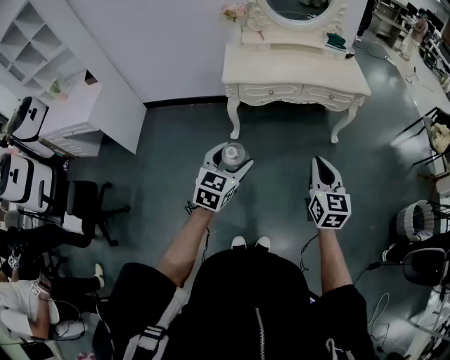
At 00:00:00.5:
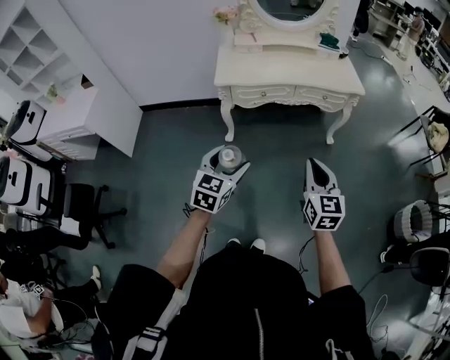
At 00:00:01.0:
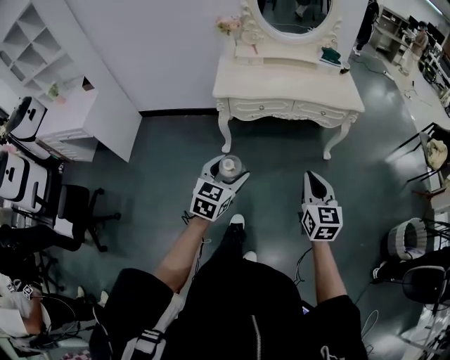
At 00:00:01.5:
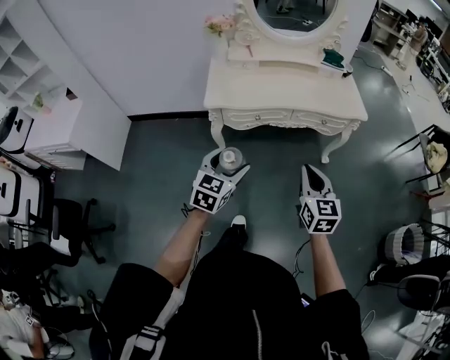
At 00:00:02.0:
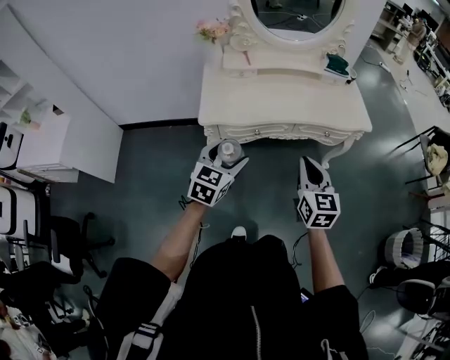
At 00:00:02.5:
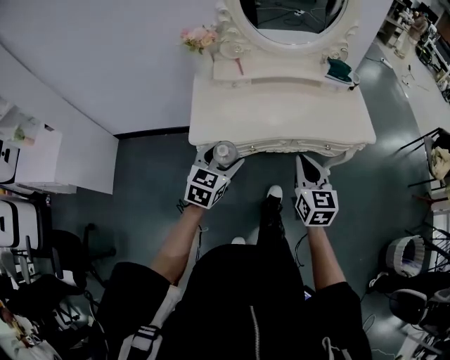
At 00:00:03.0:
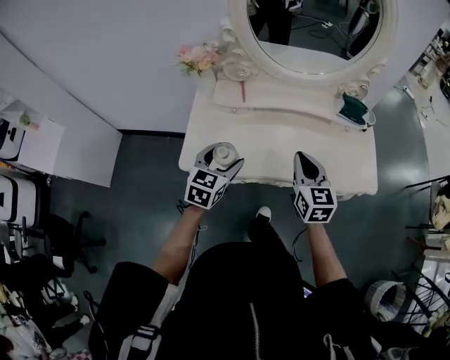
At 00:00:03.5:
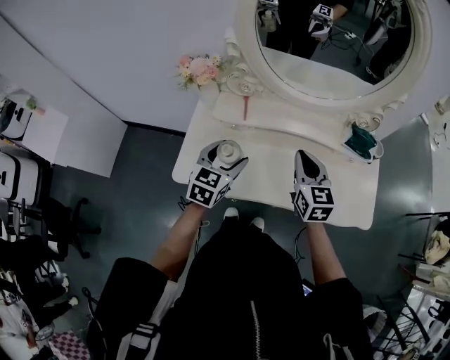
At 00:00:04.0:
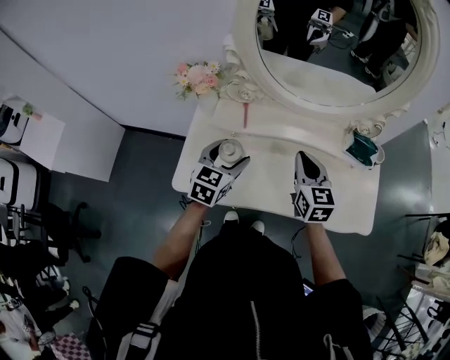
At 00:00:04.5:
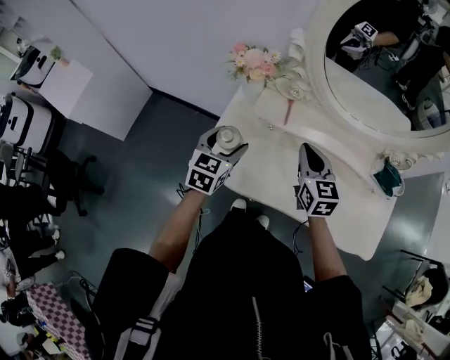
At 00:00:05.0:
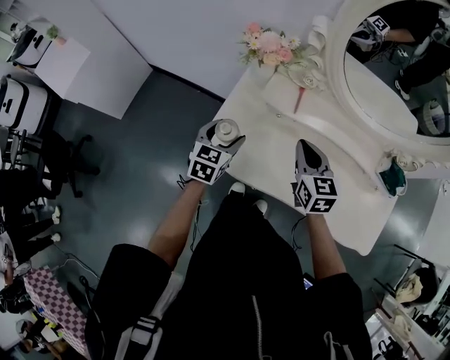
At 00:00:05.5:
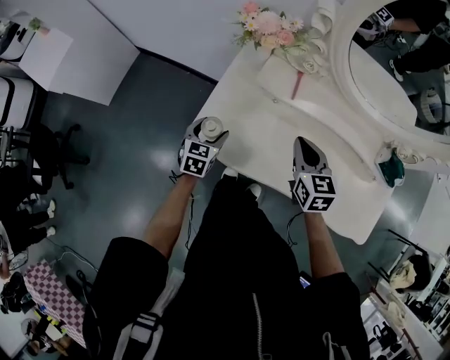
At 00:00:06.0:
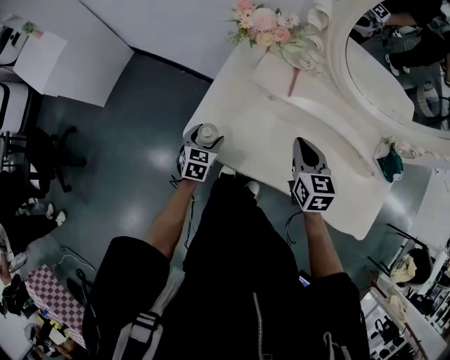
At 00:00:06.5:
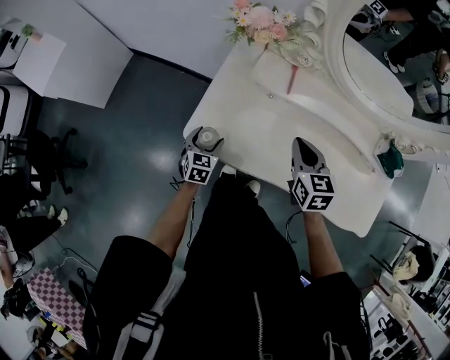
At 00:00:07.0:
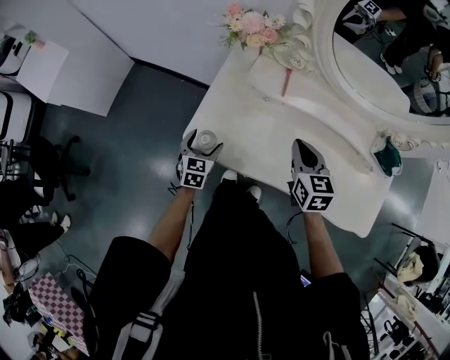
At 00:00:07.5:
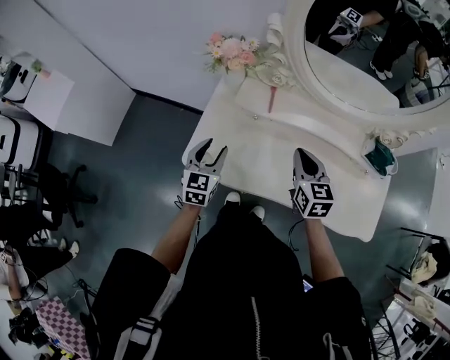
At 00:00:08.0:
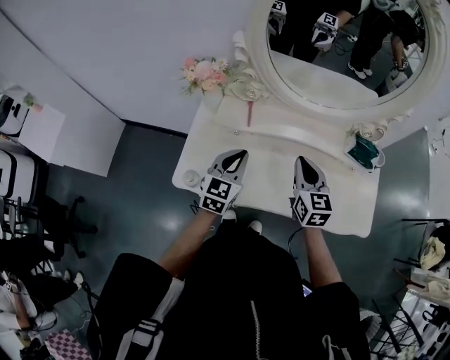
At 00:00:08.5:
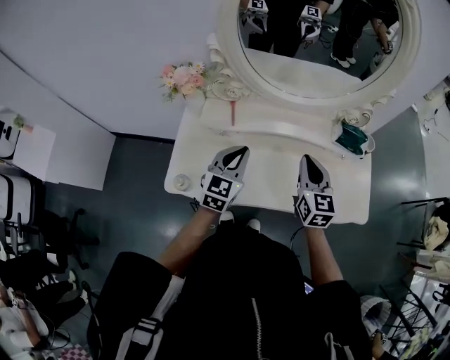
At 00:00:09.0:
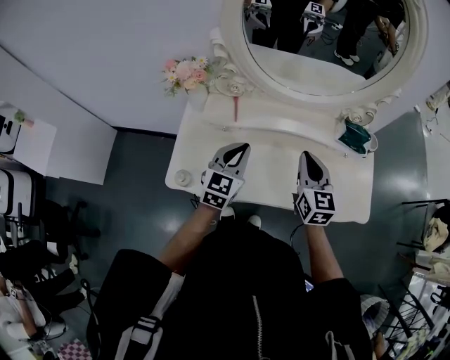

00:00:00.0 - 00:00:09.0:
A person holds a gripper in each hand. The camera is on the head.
00:00:00.0 - 00:00:02.0: Both grippers travel together forward, about 35 cm.
00:00:02.0 - 00:00:04.5: The left gripper moves about 40 cm, and changes its angle by roughly 30 degrees, while the right gripper ends up approximately 50 cm from where it was, and swivels approximately 30 degrees.
00:00:04.5 - 00:00:07.0: The right gripper moves downward, some 5 cm, while the left gripper shifts about 20 cm downward.
00:00:07.0 - 00:00:09.0: The left gripper ends up about 35 cm from where it was, rotates some 30 degrees, and closes, while the right gripper shifts by some 20 cm, and changes its angle by about 30 degrees.

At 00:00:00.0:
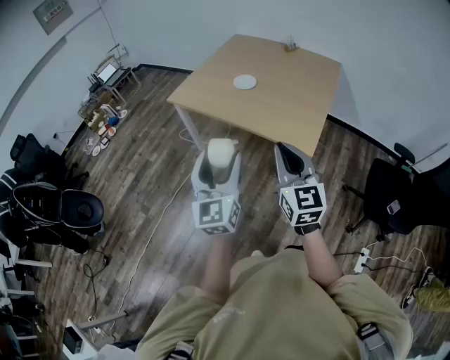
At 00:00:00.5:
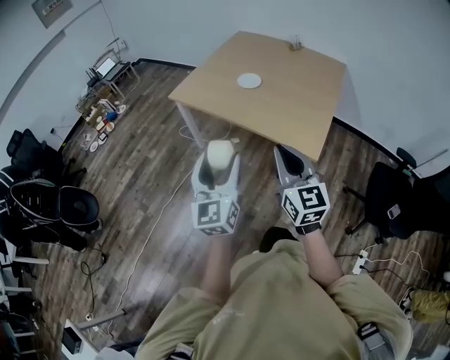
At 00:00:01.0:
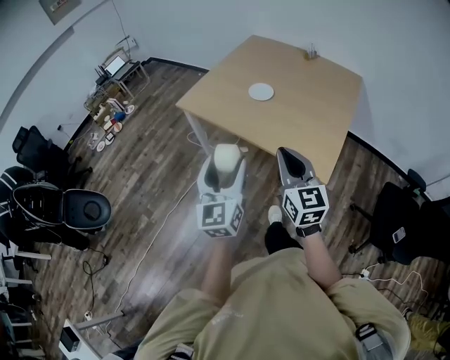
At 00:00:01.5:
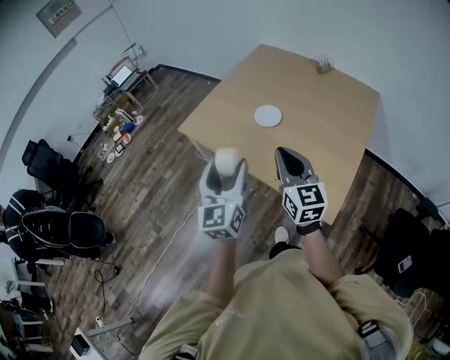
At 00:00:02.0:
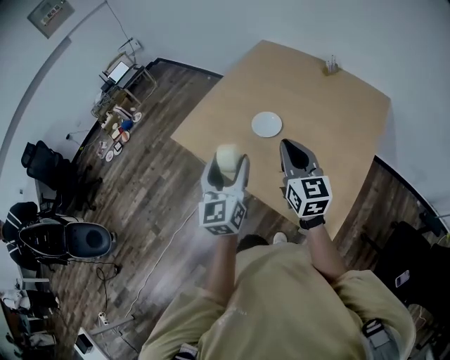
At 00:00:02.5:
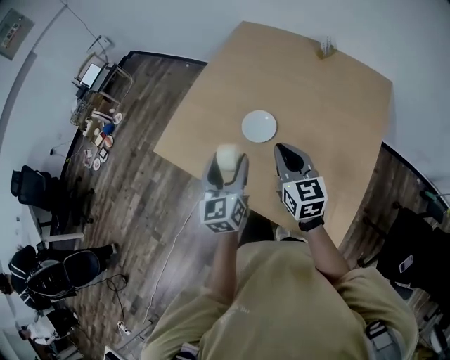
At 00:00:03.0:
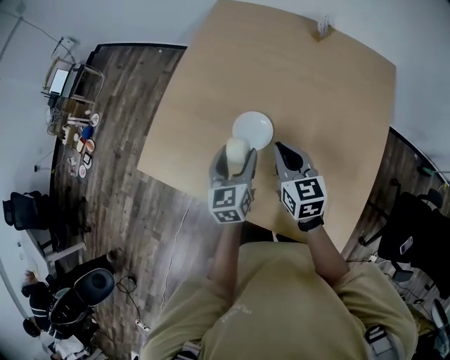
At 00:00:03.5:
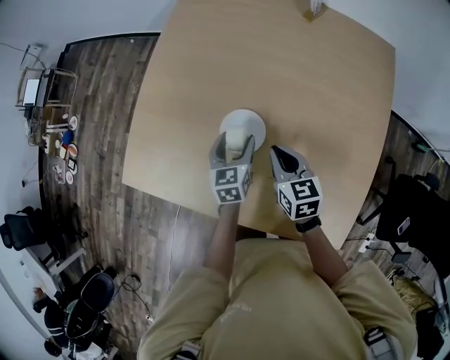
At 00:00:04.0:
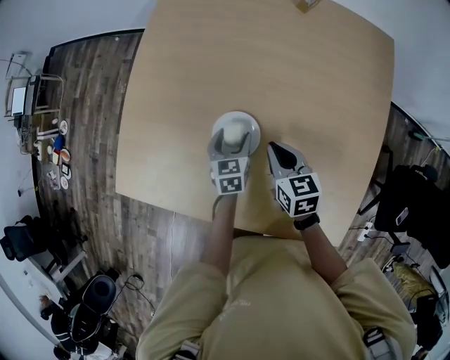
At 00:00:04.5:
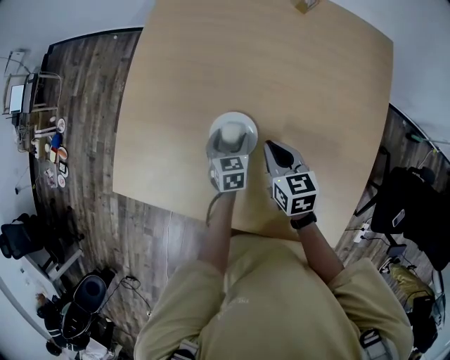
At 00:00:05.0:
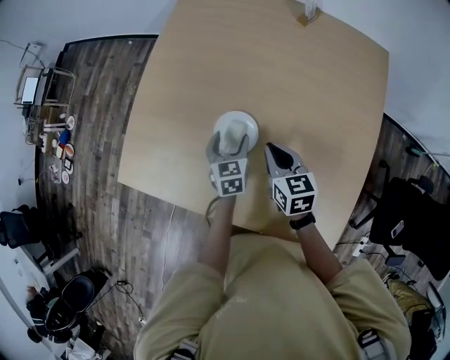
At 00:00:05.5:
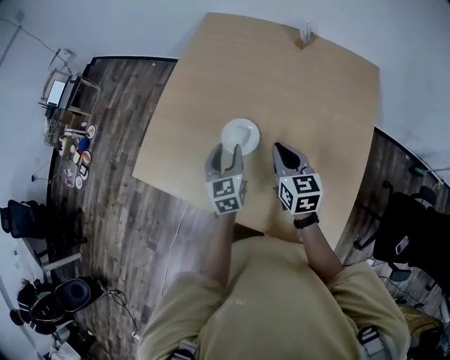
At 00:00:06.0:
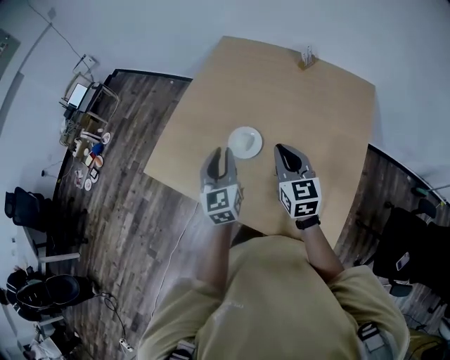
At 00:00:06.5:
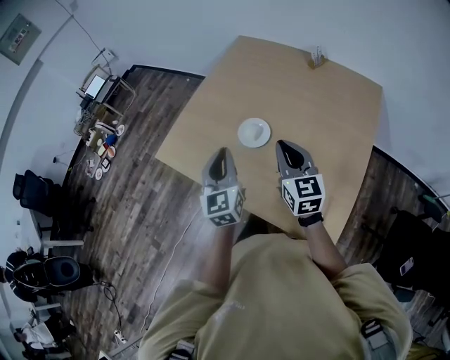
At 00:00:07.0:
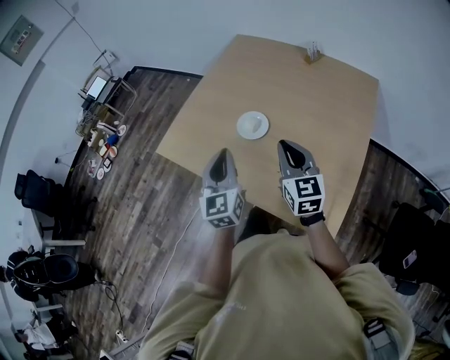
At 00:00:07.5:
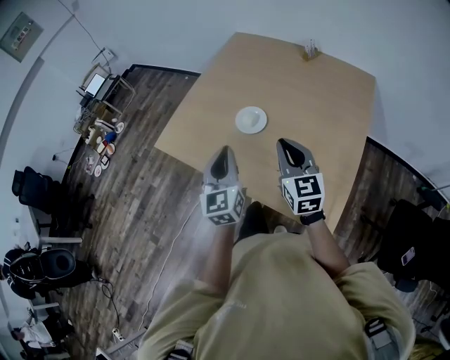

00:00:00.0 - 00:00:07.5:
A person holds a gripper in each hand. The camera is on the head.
00:00:00.0 - 00:00:02.0: Both grippers are carried forward, approximately 50 cm.
00:00:02.0 - 00:00:04.0: The grippers both shift forward and downward by approximately 50 cm. The left gripper tips its fingers downward by roughly 40 degrees. The right gripper tilts its fingers roughly 30 degrees downward.
00:00:04.0 - 00:00:05.5: Both grippers travel together upward and backward, some 20 cm. The left gripper swivels some 20 degrees, and closes up.
00:00:05.5 - 00:00:07.5: Both grippers move backward and upward, about 25 cm. The left gripper turns by about 20 degrees, and closes up. The right gripper rotates roughly 20 degrees.

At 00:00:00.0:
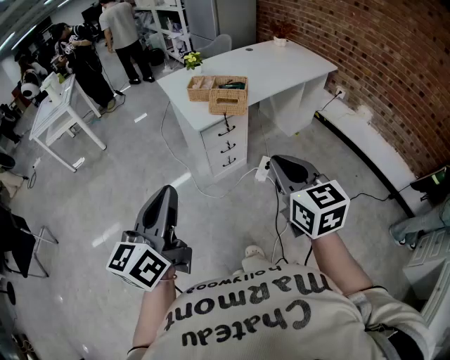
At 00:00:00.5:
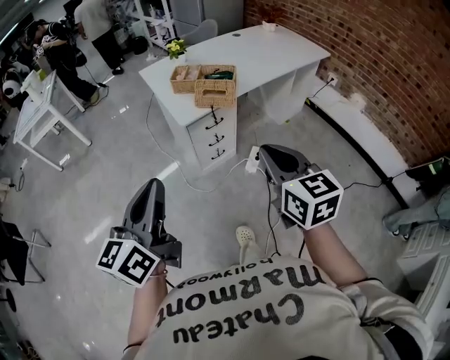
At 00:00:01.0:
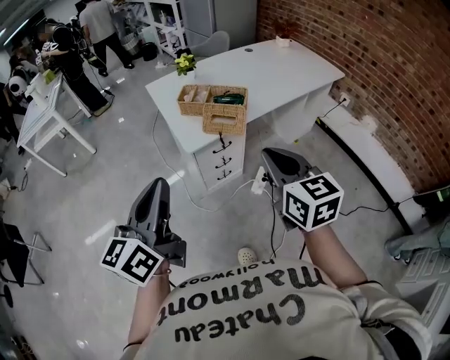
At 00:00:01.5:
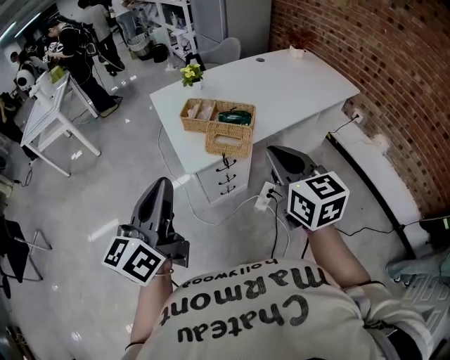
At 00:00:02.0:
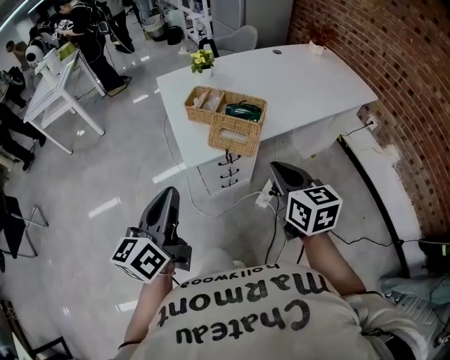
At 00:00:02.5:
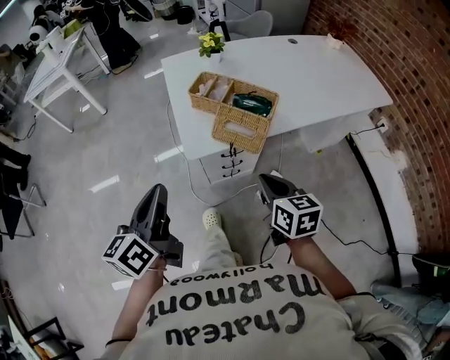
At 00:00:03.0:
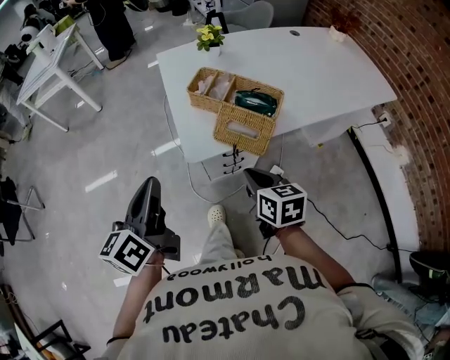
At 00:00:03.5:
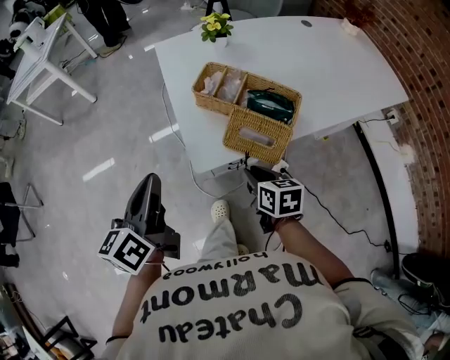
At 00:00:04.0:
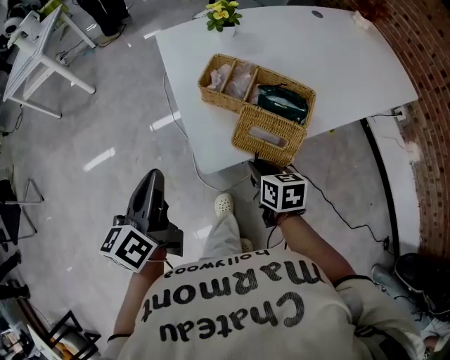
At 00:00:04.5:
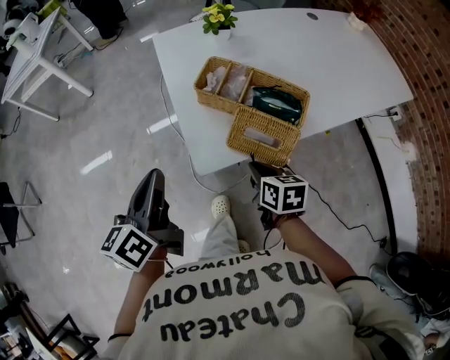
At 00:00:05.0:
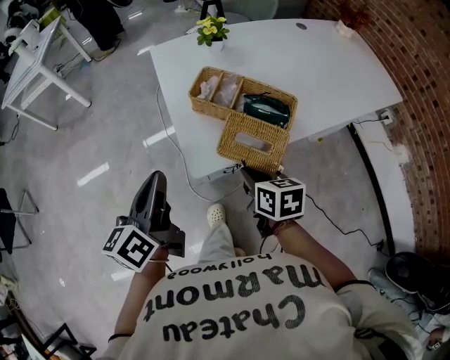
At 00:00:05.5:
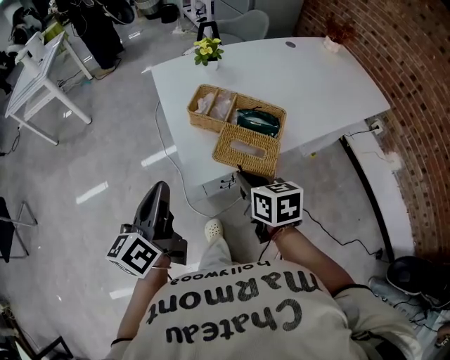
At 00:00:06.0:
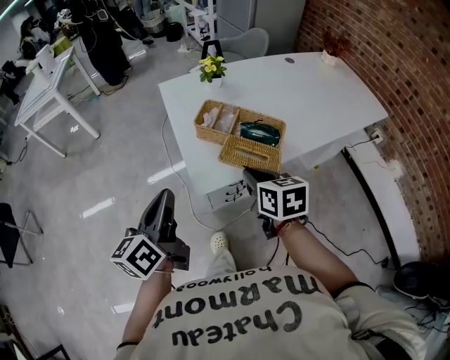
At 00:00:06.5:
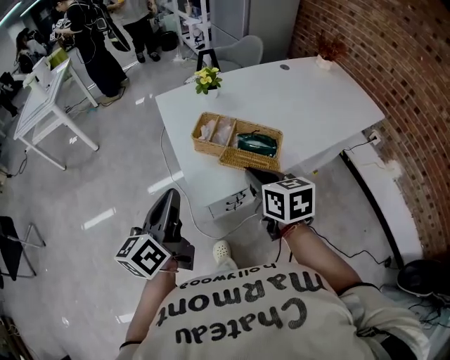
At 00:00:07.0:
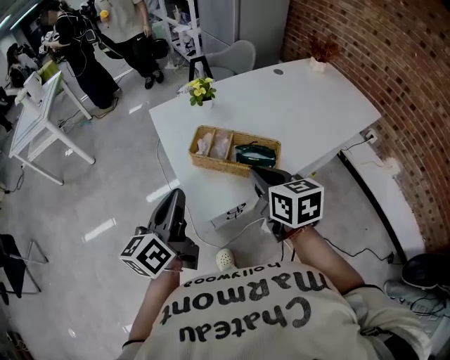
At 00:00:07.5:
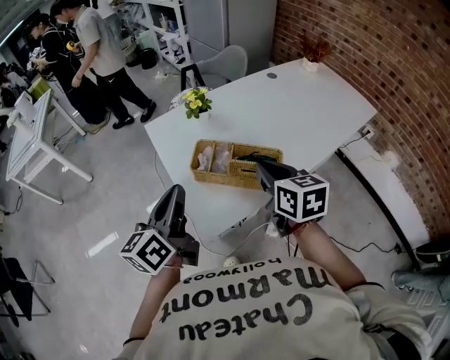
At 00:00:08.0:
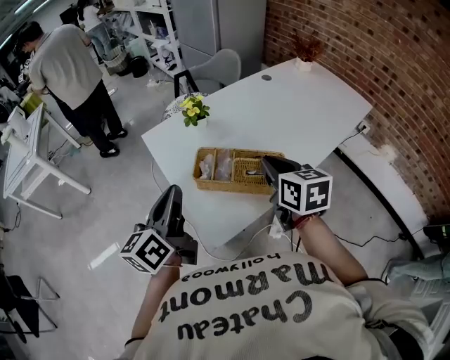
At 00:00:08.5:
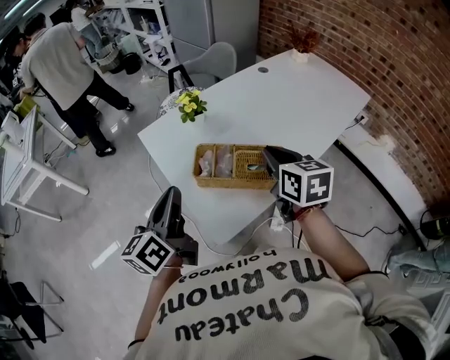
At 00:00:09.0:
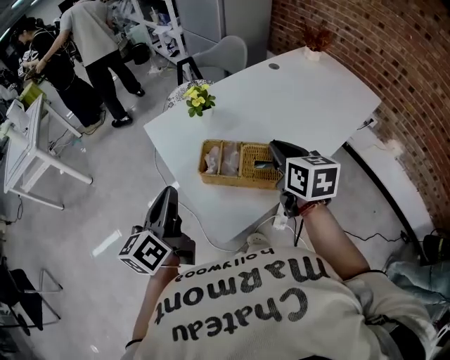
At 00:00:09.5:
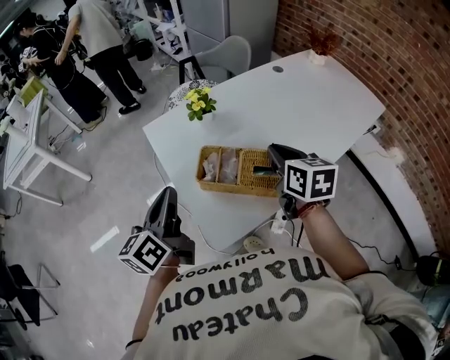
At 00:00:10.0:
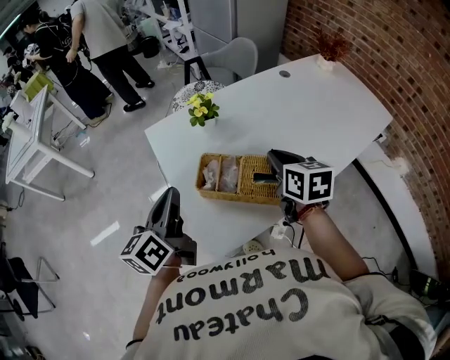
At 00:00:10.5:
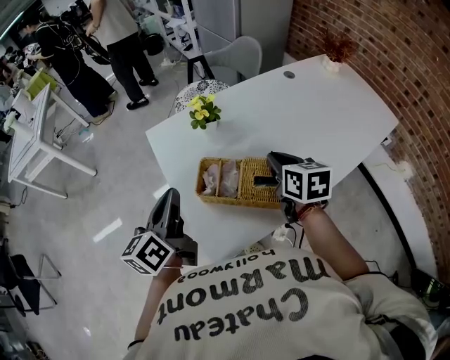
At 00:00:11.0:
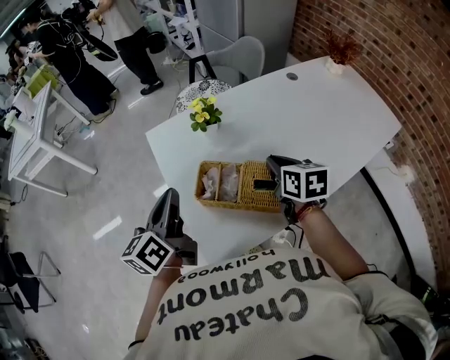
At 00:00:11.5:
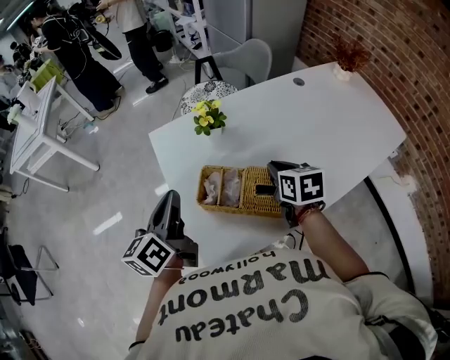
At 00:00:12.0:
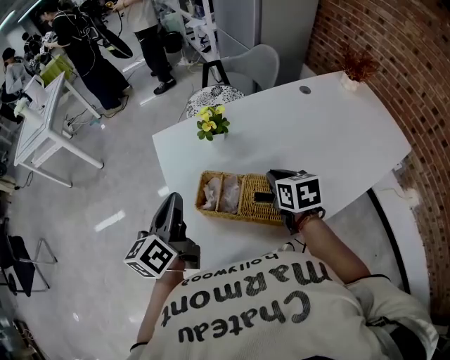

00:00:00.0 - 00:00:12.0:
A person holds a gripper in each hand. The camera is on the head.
00:00:00.0 - 00:00:02.0: The two grippers go roughly 30 cm forward.
00:00:02.0 - 00:00:04.0: The left gripper heads forward, downward and to the left, covering roughly 25 cm, while the right gripper is displaced downward and forward by approximately 30 cm, and turns by roughly 30 degrees.
00:00:04.0 - 00:00:06.0: The left gripper travels upward and backward by roughly 10 cm. Meanwhile the right gripper heads upward, covering roughly 15 cm.
00:00:06.0 - 00:00:08.0: The right gripper heads forward and upward, covering some 15 cm; the left gripper shifts about 20 cm forward.
00:00:08.0 - 00:00:10.0: The right gripper goes roughly 10 cm forward, while the left gripper heads forward, covering about 5 cm.
00:00:10.0 - 00:00:12.0: The right gripper travels downward and forward by about 10 cm. The left gripper shifts by some 5 cm.
